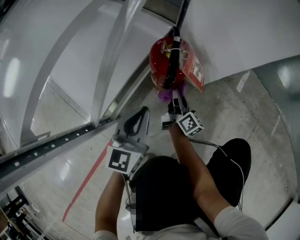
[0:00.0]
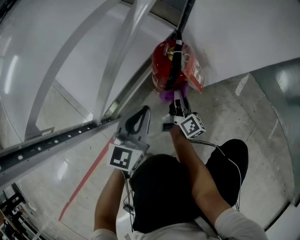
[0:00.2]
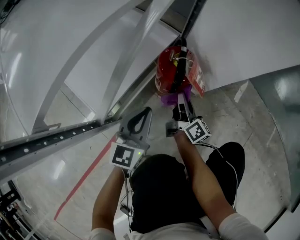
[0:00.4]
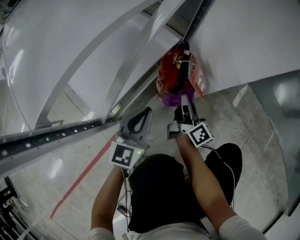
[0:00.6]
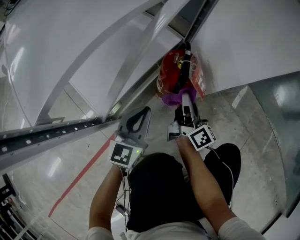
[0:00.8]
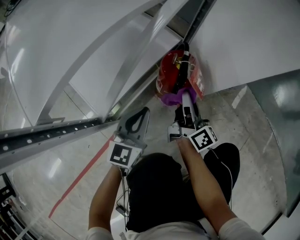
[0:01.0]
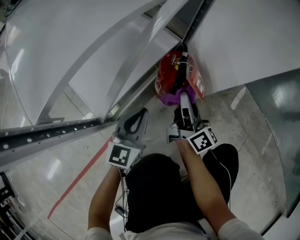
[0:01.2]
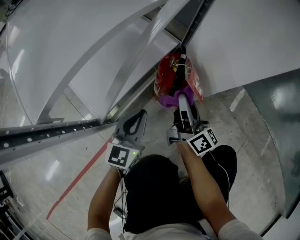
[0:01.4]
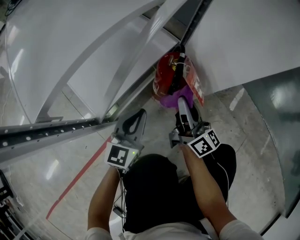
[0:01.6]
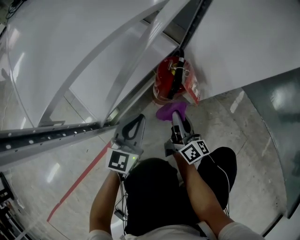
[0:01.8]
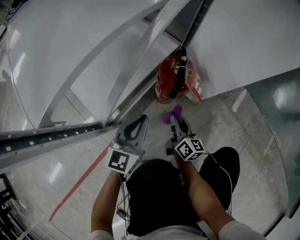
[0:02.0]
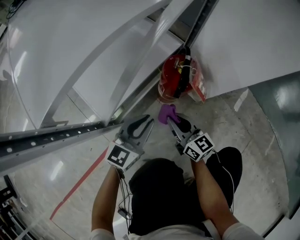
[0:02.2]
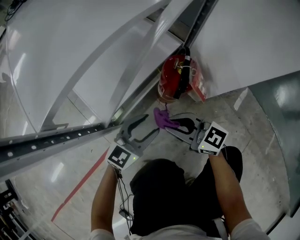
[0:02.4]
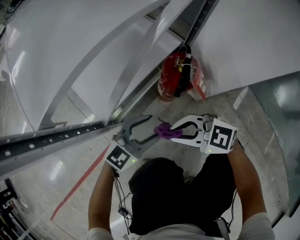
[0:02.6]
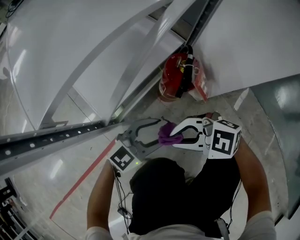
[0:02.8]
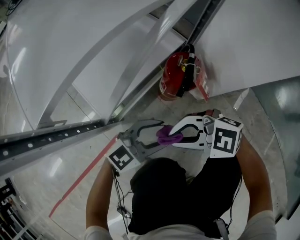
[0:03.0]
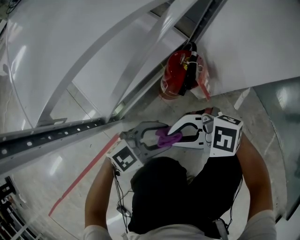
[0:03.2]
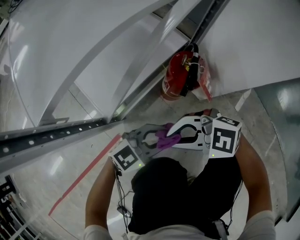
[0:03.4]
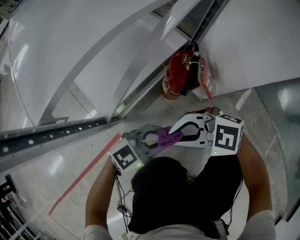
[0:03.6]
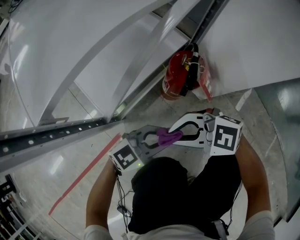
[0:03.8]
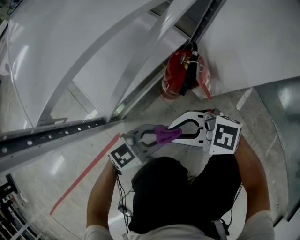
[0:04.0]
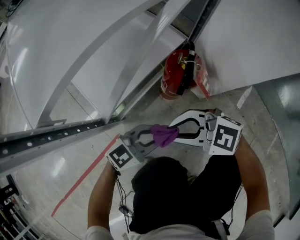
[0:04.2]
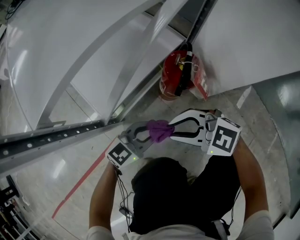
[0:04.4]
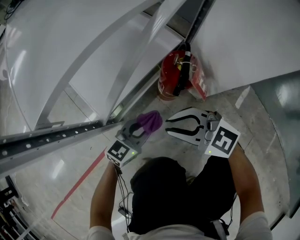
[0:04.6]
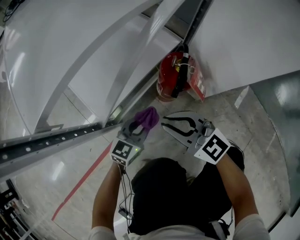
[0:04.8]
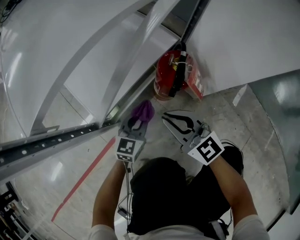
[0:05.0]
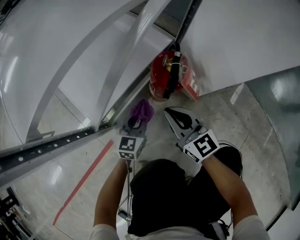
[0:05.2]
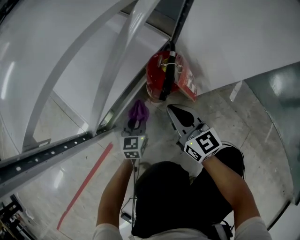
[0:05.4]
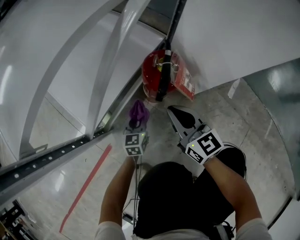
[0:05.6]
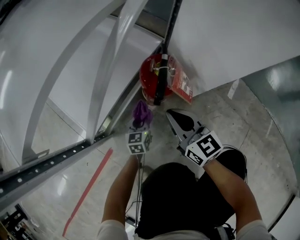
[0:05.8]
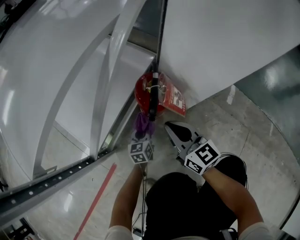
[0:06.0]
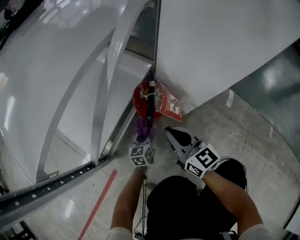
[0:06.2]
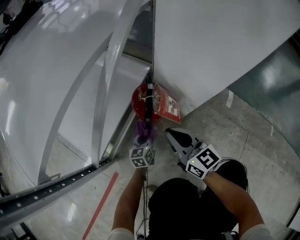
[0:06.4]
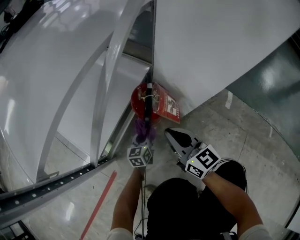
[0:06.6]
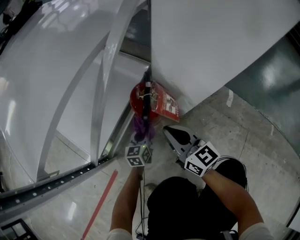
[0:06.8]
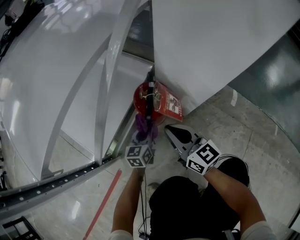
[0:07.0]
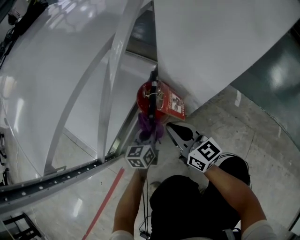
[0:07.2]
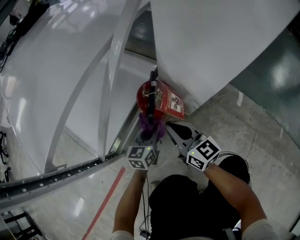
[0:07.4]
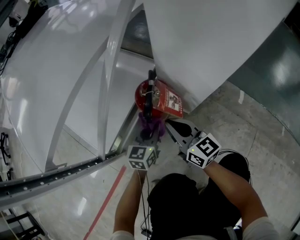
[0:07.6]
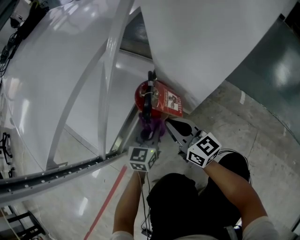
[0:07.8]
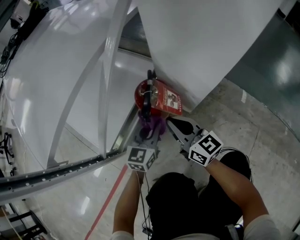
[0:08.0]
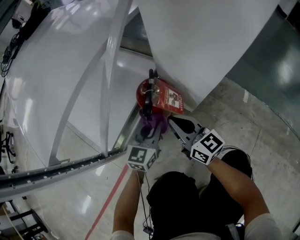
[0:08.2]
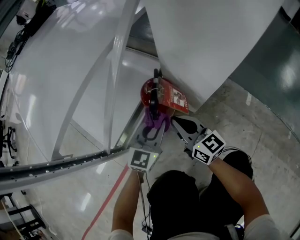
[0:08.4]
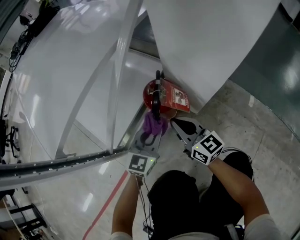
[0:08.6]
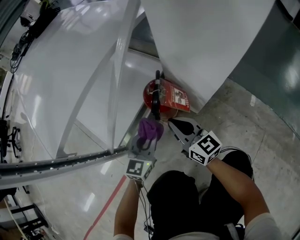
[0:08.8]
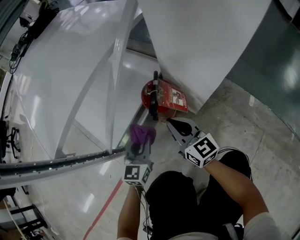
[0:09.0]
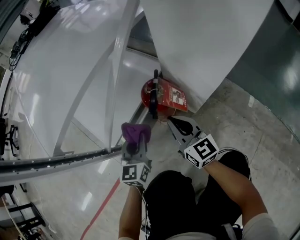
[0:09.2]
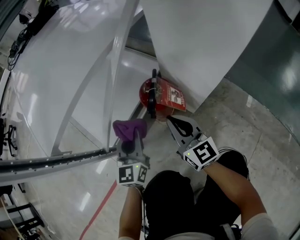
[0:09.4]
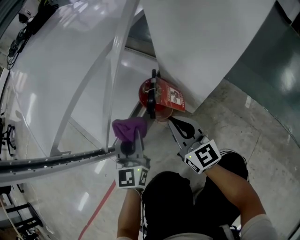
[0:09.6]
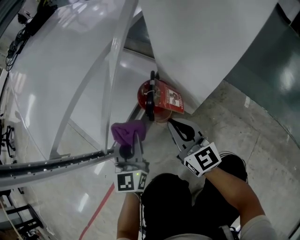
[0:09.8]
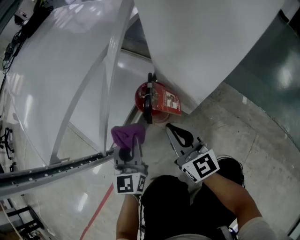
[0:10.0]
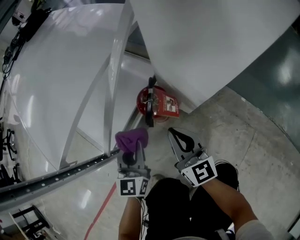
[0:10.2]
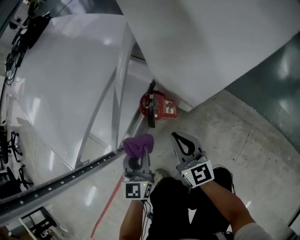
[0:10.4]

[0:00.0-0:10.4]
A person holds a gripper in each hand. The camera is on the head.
0.0 to 1.4 s: The right gripper travels upward by about 20 cm, and swivels about 20 degrees.
1.4 to 3.0 s: The right gripper goes downward and returns, roughly 15 cm each way, and tilts its fingers roughly 40 degrees downward. Meanwhile the left gripper changes place by some 10 cm, swivels some 40 degrees, and opens up.
3.0 to 4.4 s: The left gripper closes.
4.4 to 6.0 s: The right gripper shifts by some 10 cm, and rotates some 70 degrees. Meanwhile the left gripper is displaced downward by roughly 20 cm, and swivels about 40 degrees.
6.0 to 7.4 s: The left gripper travels upward by roughly 15 cm.
7.4 to 9.0 s: The left gripper travels upward, to the left and backward by roughly 10 cm, and rotates about 20 degrees.
9.0 to 10.4 s: Both grippers travel together upward, about 15 cm.

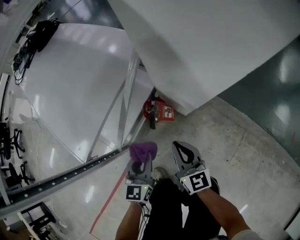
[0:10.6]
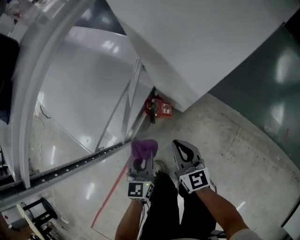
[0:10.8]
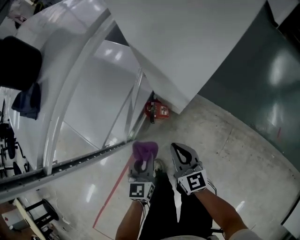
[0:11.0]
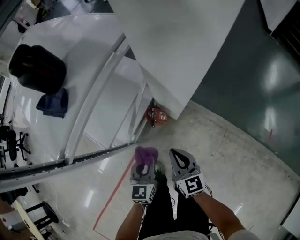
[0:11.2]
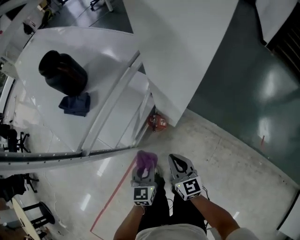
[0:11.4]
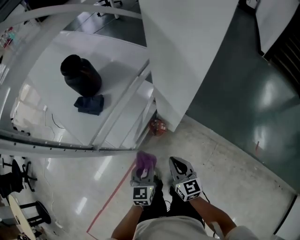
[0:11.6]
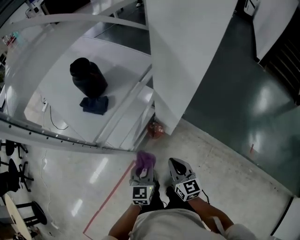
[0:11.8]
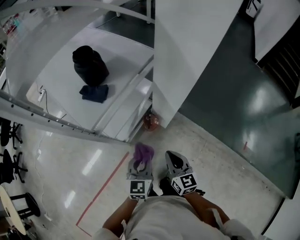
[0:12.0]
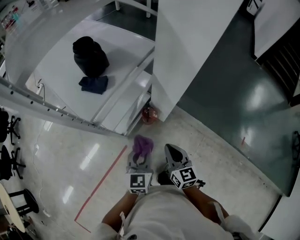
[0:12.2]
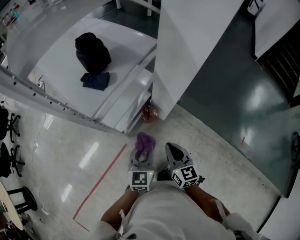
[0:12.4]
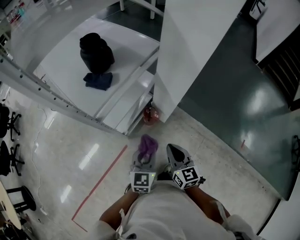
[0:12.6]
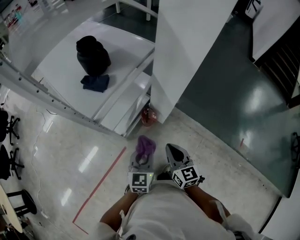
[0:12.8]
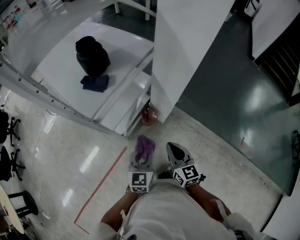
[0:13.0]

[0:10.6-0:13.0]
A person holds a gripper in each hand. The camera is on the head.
10.6 to 11.8 s: Both grippers move upward, about 40 cm.
11.8 to 13.0 s: The grippers stay close to where they were, moving slightly.

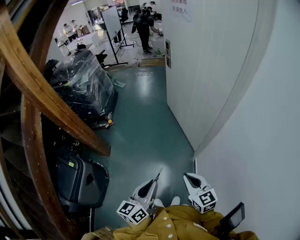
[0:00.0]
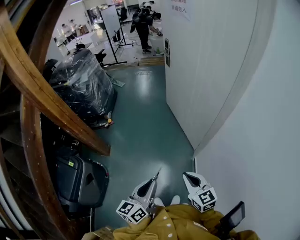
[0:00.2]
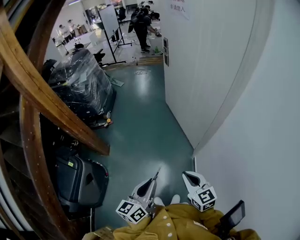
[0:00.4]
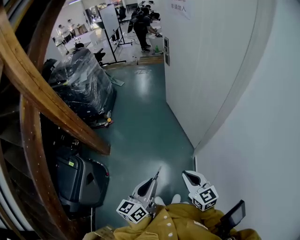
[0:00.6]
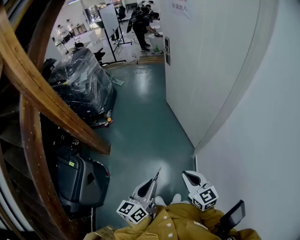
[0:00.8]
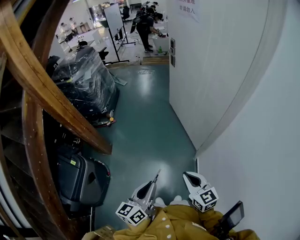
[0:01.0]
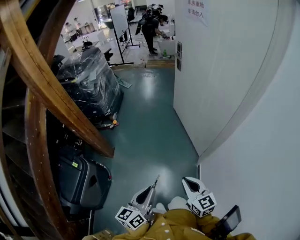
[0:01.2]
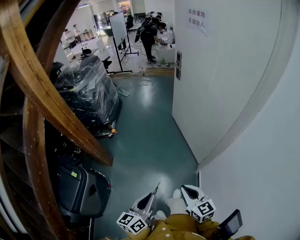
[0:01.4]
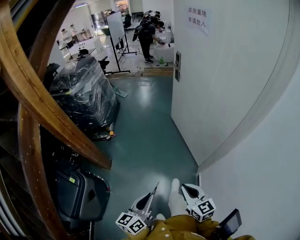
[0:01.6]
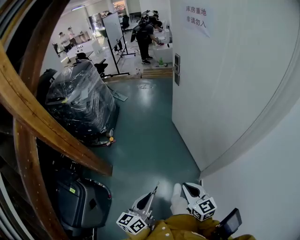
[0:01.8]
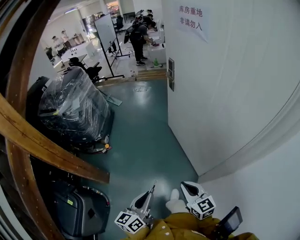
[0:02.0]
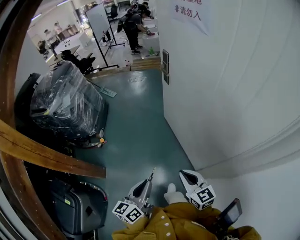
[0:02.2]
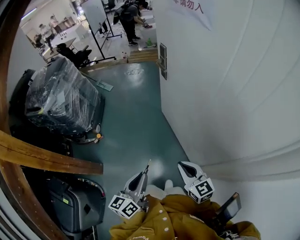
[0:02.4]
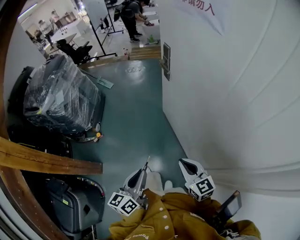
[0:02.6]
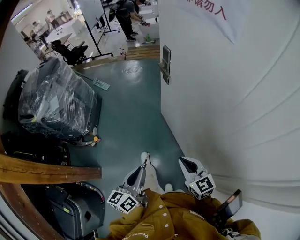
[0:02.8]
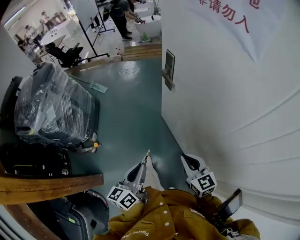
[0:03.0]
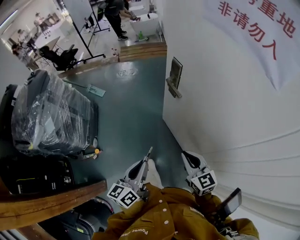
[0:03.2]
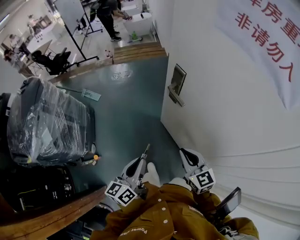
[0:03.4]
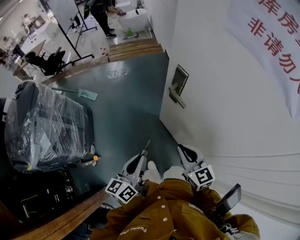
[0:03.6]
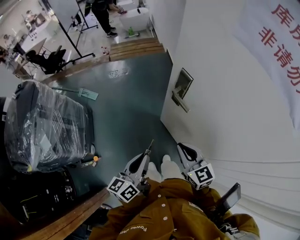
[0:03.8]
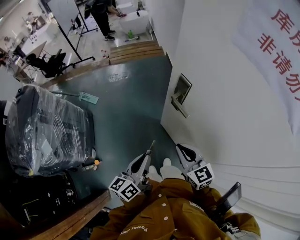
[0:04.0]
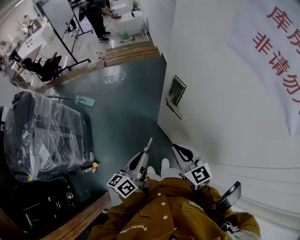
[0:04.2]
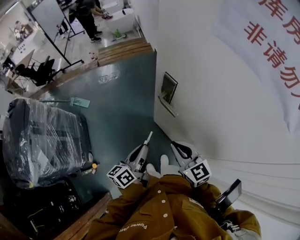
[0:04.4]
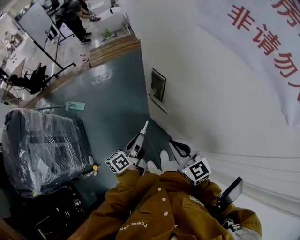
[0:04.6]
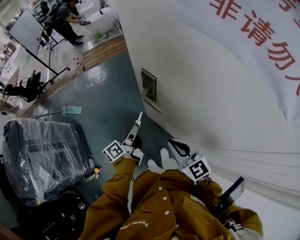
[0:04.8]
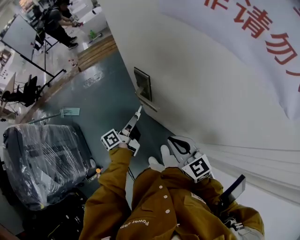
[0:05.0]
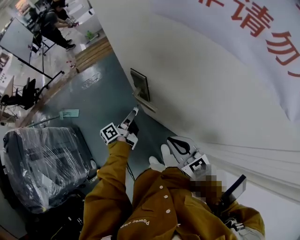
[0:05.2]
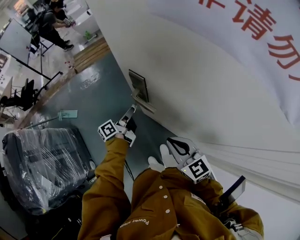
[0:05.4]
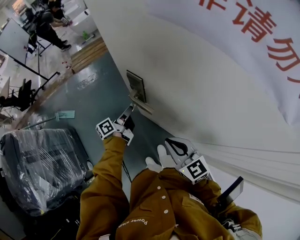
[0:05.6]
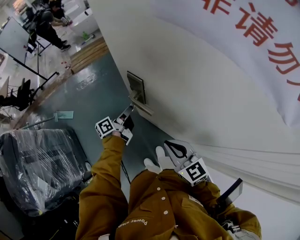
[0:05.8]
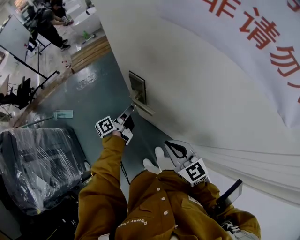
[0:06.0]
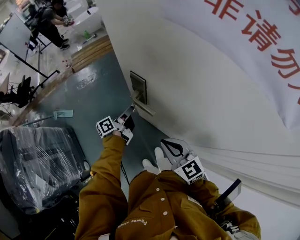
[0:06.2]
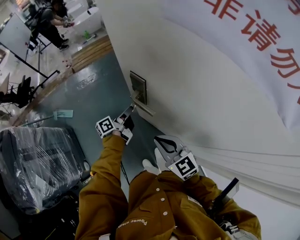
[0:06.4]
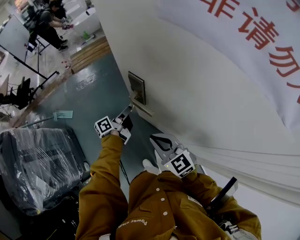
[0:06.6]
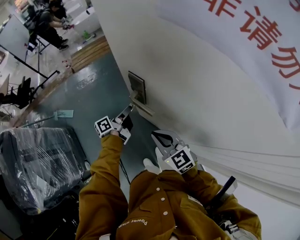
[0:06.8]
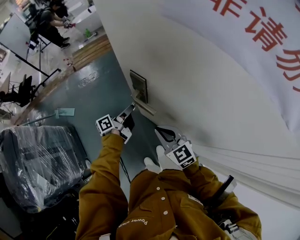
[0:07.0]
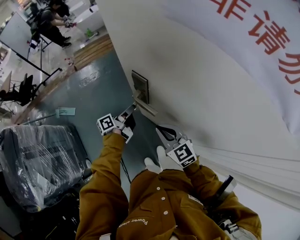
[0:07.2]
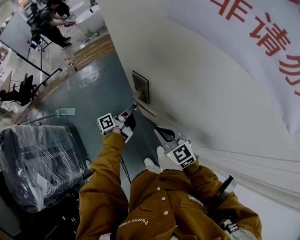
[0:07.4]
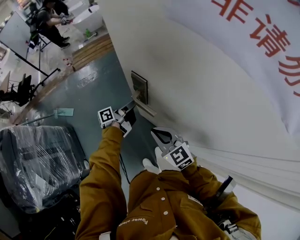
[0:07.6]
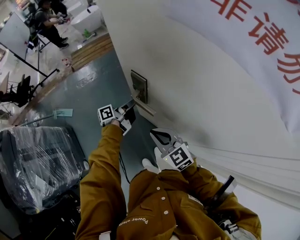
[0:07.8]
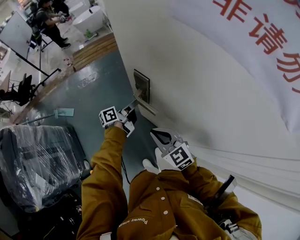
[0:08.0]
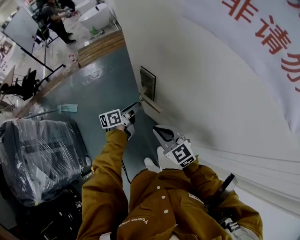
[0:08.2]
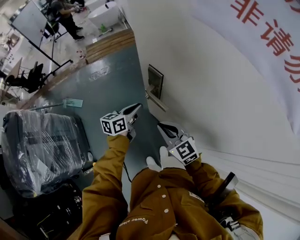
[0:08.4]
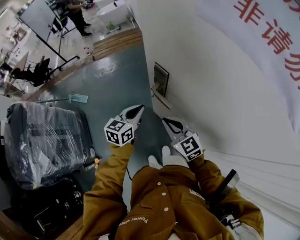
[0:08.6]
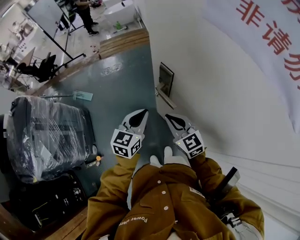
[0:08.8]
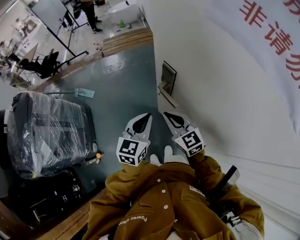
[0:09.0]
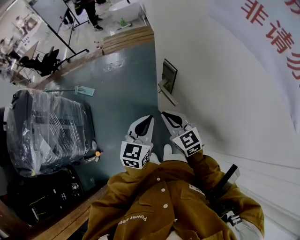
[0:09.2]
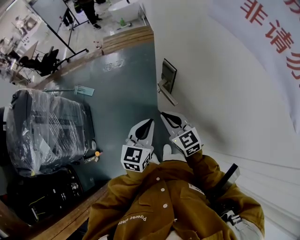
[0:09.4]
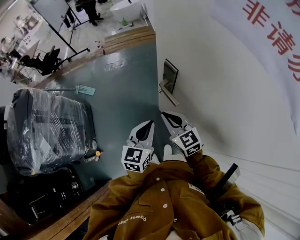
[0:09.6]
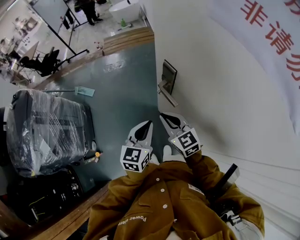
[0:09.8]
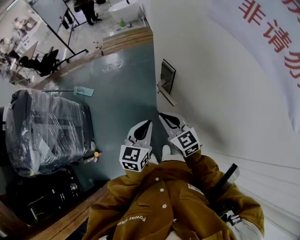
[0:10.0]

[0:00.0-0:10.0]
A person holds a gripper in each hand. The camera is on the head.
0.0 to 1.4 s: The two grippers go some 10 cm to the left.
1.4 to 2.8 s: The pair of grippers is taken forward, some 50 cm.
2.8 to 4.2 s: Both grippers travel together forward, approximately 35 cm.
4.2 to 5.8 s: The left gripper shifts approximately 25 cm forward and downward, and turns by some 40 degrees. Meanwhile the right gripper goes approximately 5 cm to the right.
5.8 to 7.2 s: The right gripper travels forward by roughly 5 cm.
7.2 to 8.6 s: The left gripper travels backward and upward by some 10 cm, rotates around the line of its fingers by about 60 degrees, clockwise from behind, and opens, then closes again.
8.6 to 10.0 s: The left gripper heads backward, covering roughly 10 cm.

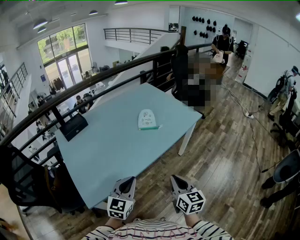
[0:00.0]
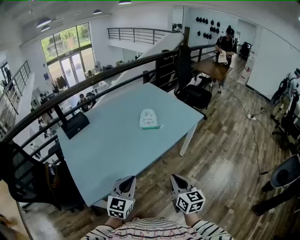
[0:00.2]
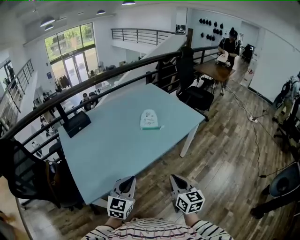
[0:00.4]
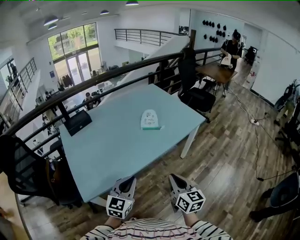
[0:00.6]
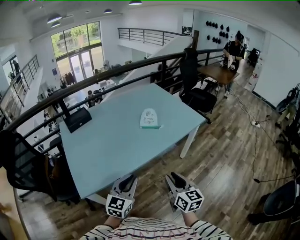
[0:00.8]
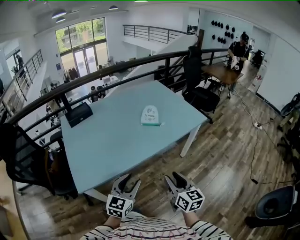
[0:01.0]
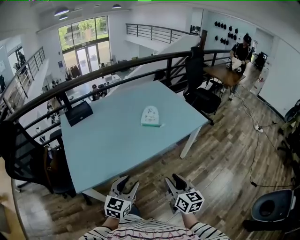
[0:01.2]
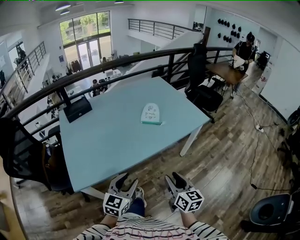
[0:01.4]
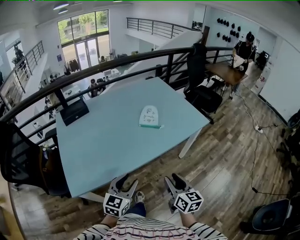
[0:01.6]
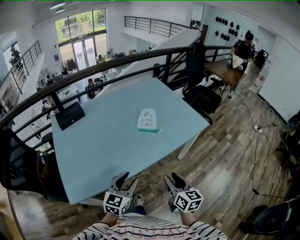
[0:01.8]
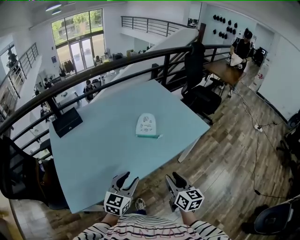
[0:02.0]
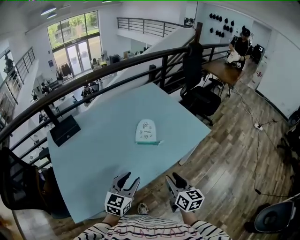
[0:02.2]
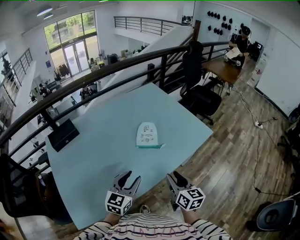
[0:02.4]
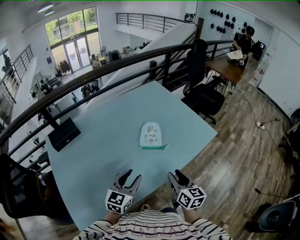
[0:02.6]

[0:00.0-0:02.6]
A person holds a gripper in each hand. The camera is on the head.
0.0 to 1.2 s: Both grippers move to the right, approximately 5 cm. The left gripper opens, while the right gripper opens its fingers.
1.2 to 2.6 s: The two grippers go approximately 30 cm forward.
